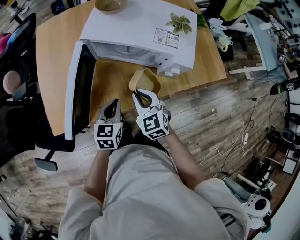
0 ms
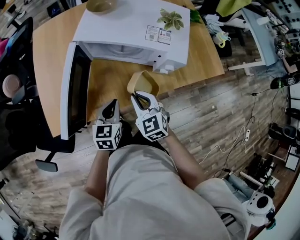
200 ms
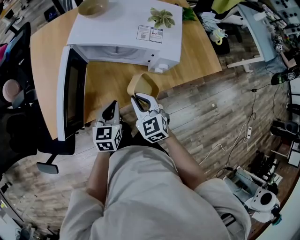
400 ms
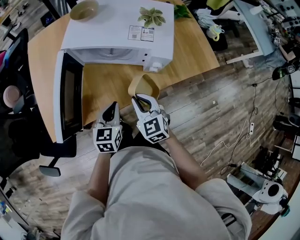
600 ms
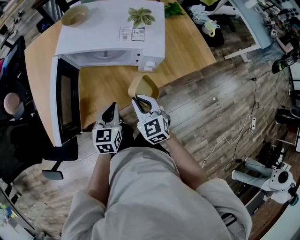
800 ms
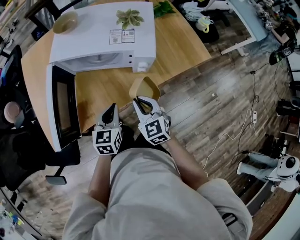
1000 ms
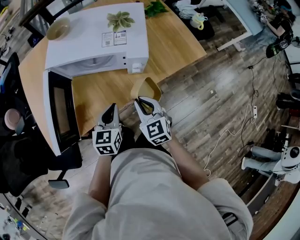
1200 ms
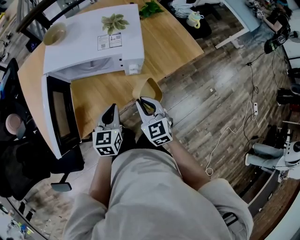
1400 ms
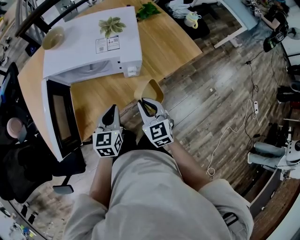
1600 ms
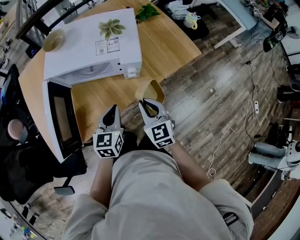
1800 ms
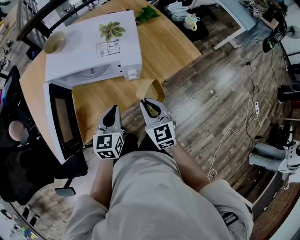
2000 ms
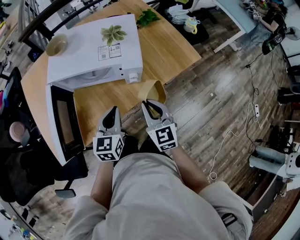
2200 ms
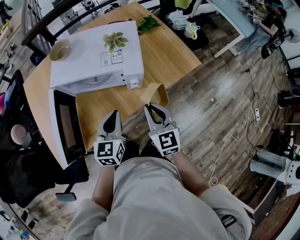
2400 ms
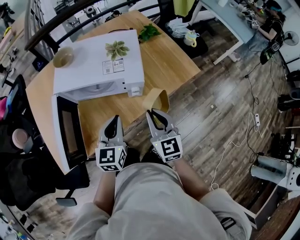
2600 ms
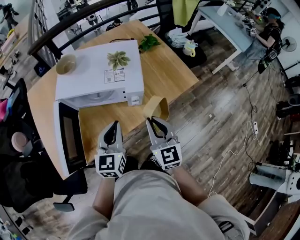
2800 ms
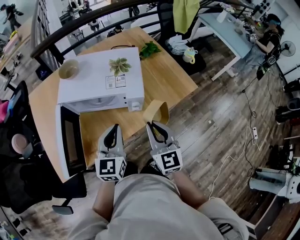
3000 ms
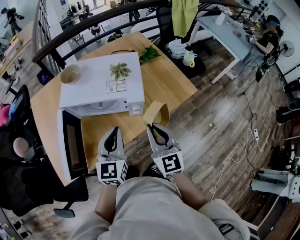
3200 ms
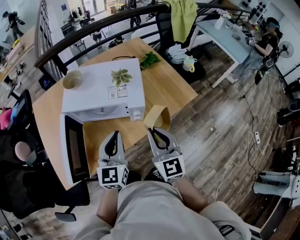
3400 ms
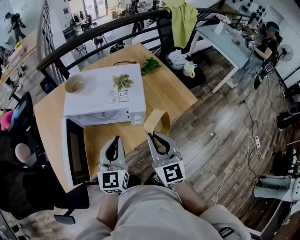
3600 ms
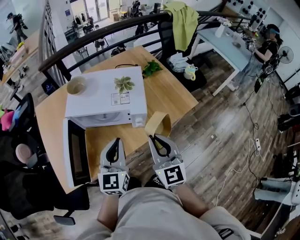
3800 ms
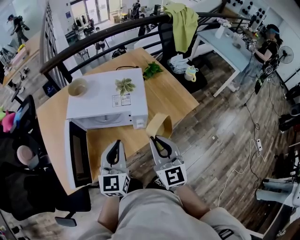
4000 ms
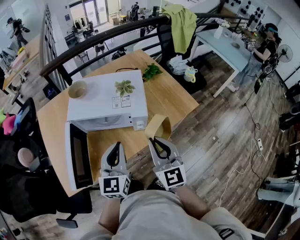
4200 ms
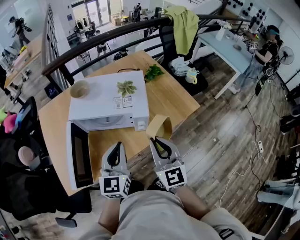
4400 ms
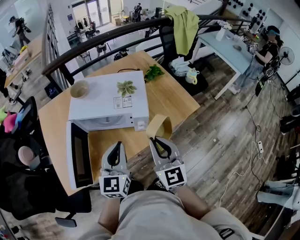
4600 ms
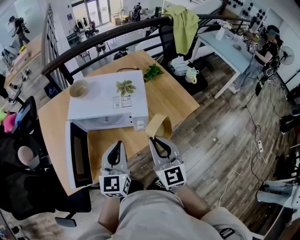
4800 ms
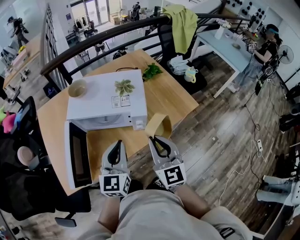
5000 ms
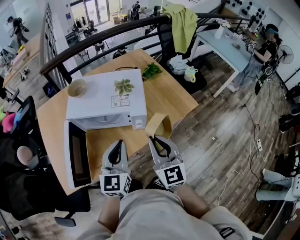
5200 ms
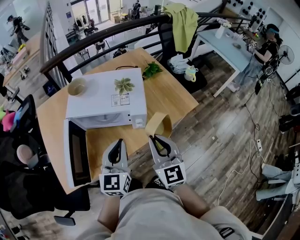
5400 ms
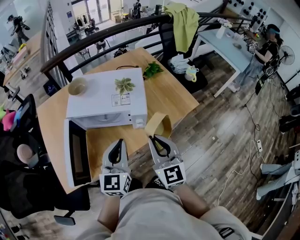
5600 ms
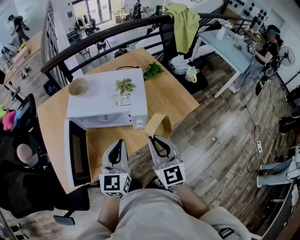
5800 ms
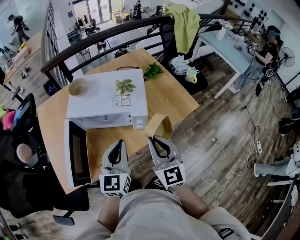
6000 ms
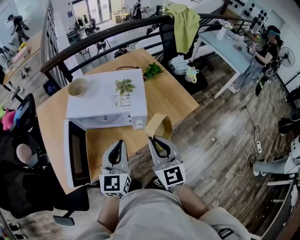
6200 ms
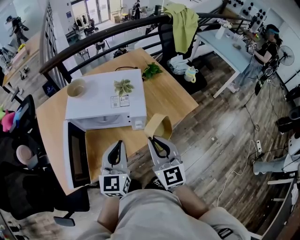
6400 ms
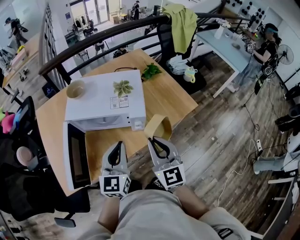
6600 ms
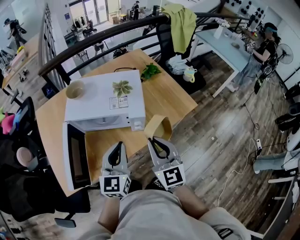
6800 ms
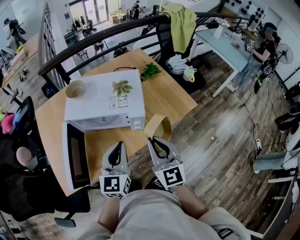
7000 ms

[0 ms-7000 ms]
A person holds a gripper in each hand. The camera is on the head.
0 ms to 1400 ms: Both grippers travel together to the right, approximately 15 cm.
1400 ms to 2800 ms: Both grippers travel together upward, roughly 10 cm.
2800 ms to 4200 ms: The grippers both shift upward by approximately 5 cm.
4200 ms to 5600 ms: The grippers make only small movements.
5600 ms to 7000 ms: Neither gripper changes place.

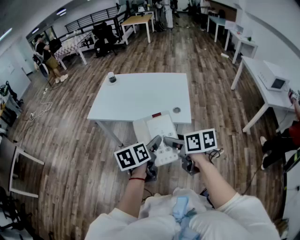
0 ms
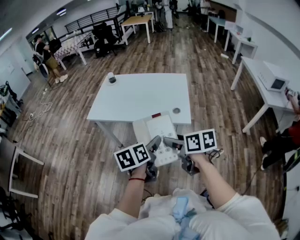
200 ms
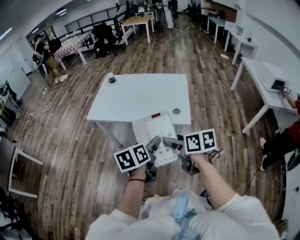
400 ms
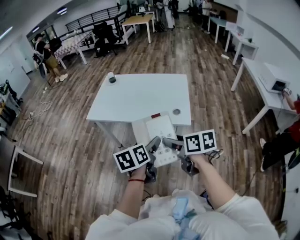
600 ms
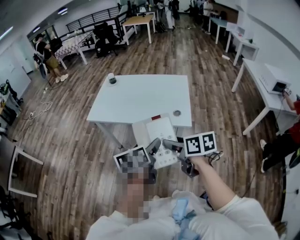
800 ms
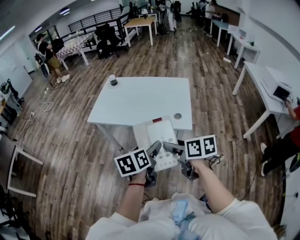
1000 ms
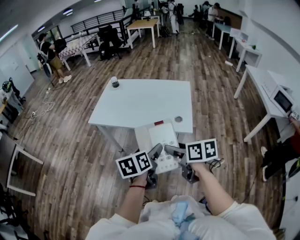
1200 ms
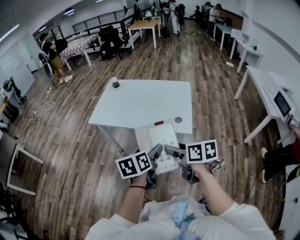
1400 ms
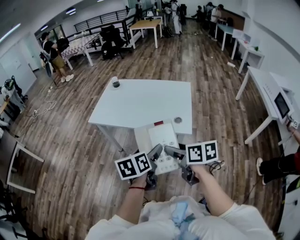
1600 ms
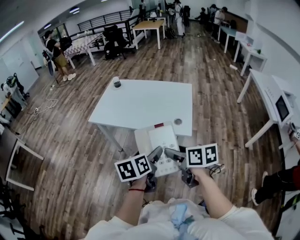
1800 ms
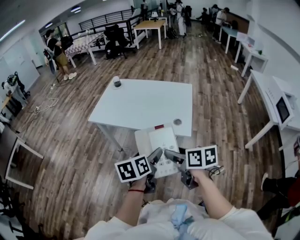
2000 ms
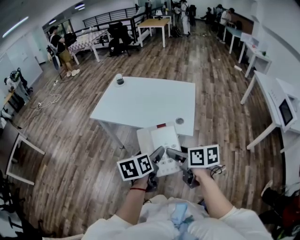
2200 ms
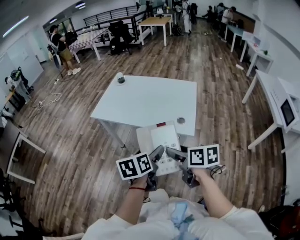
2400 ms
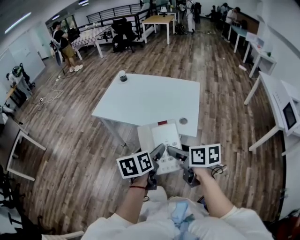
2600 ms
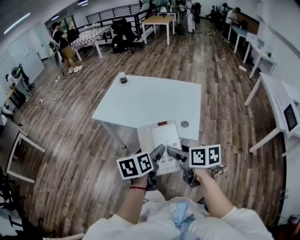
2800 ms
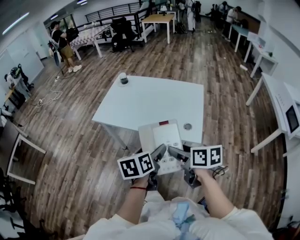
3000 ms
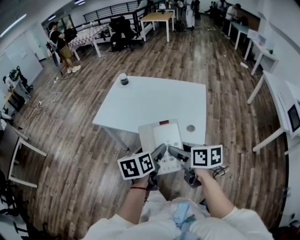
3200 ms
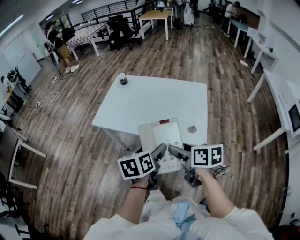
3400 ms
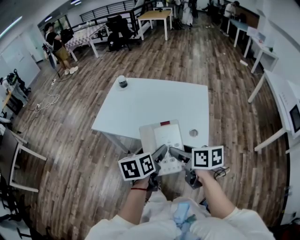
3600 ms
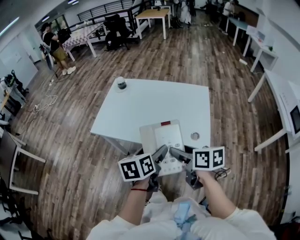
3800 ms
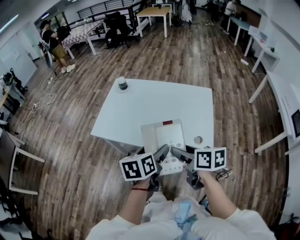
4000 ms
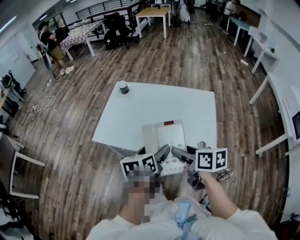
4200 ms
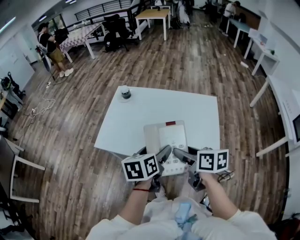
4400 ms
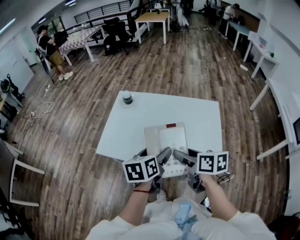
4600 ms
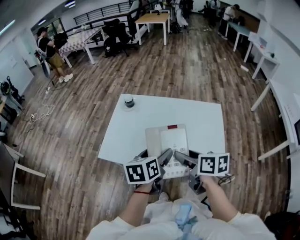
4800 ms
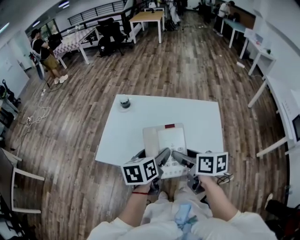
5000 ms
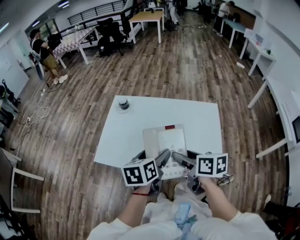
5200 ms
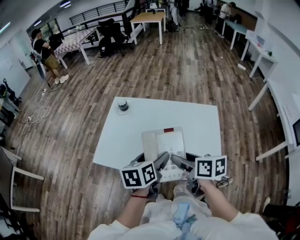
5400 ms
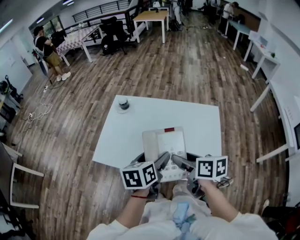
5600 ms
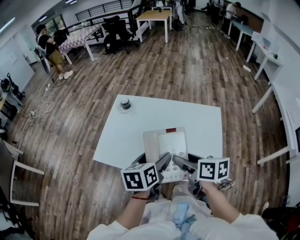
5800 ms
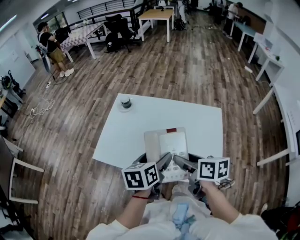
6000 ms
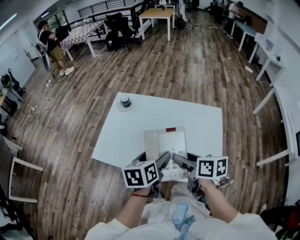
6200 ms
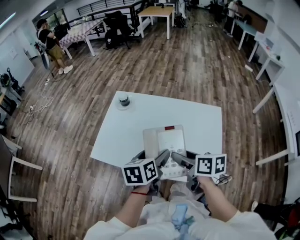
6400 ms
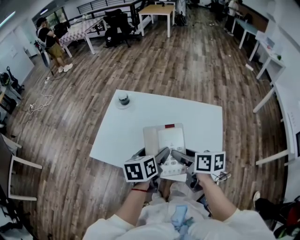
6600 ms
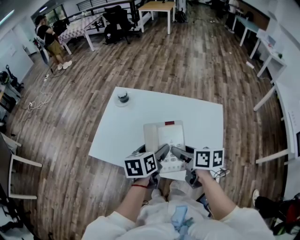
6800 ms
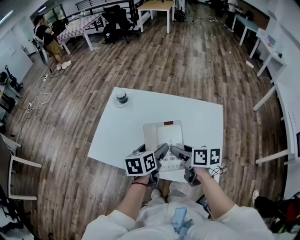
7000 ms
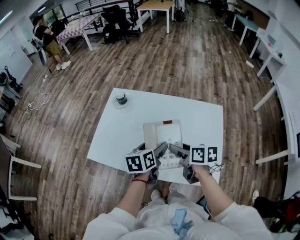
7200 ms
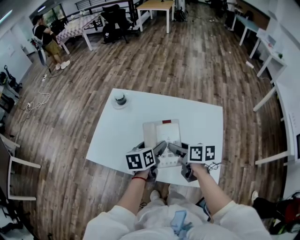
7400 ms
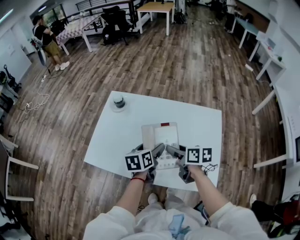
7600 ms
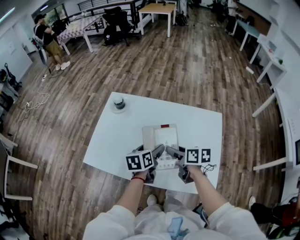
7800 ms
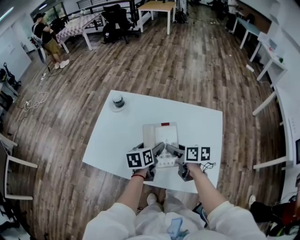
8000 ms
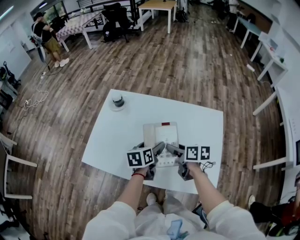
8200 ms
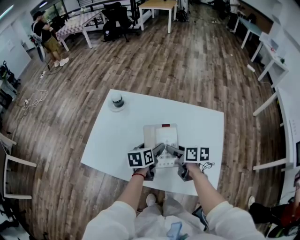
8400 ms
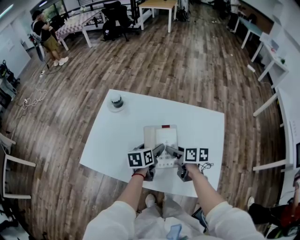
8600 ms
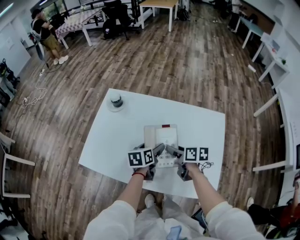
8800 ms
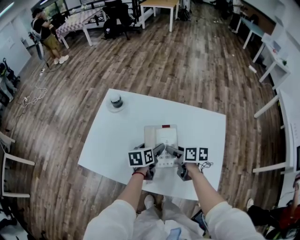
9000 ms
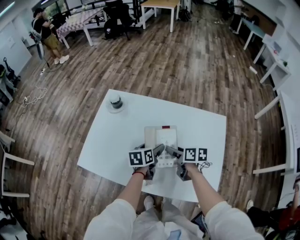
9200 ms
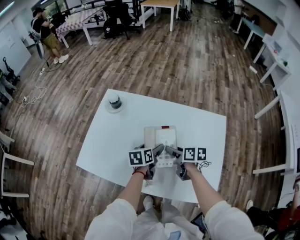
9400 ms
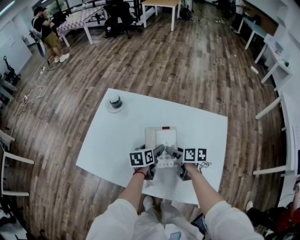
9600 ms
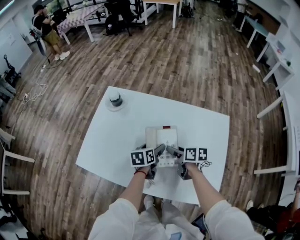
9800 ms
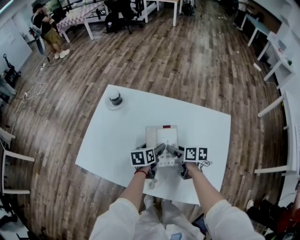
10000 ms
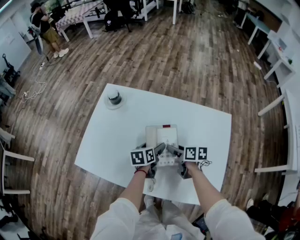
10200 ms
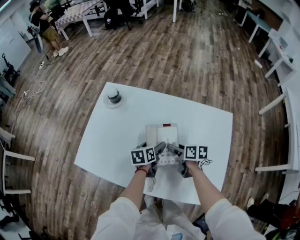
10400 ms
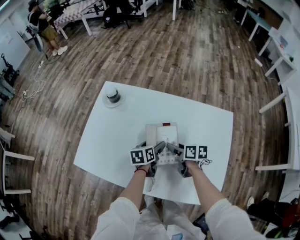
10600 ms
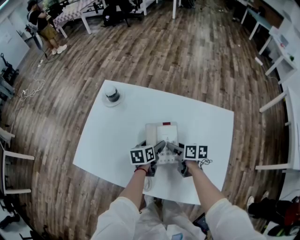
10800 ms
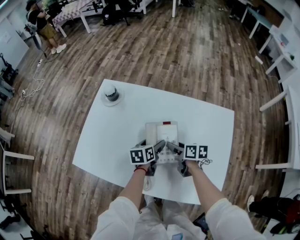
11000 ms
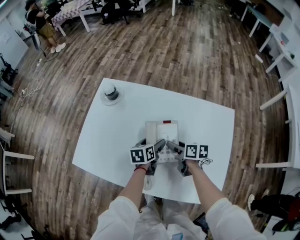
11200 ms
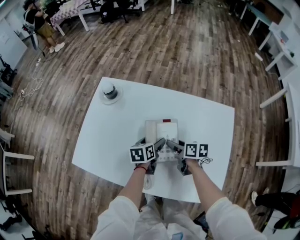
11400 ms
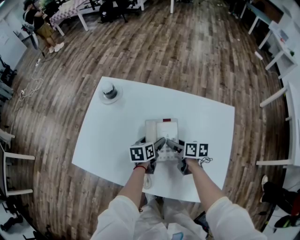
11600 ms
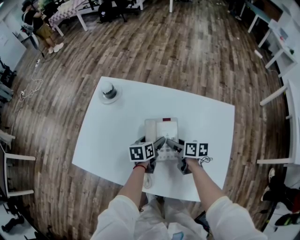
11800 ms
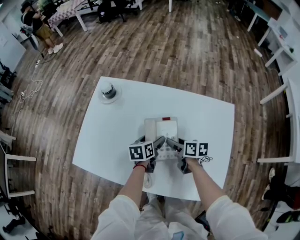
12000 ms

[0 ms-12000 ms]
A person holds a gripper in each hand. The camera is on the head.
0 ms to 1600 ms: The grippers make only small movements.
1600 ms to 3000 ms: The two grippers go about 5 cm forward.
3000 ms to 4400 ms: The two grippers go roughly 20 cm forward.
4400 ms to 6000 ms: Both grippers move forward, some 5 cm.
6000 ms to 7600 ms: Both grippers move forward and downward, approximately 15 cm.
7600 ms to 9000 ms: The left gripper goes approximately 10 cm downward and forward, while the right gripper shifts roughly 10 cm downward.
9000 ms to 10400 ms: The two grippers go roughly 5 cm downward.
10400 ms to 12000 ms: The grippers stay close to where they were, moving slightly.

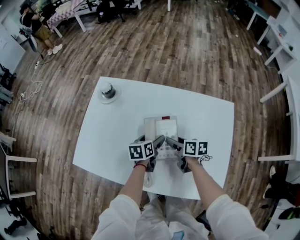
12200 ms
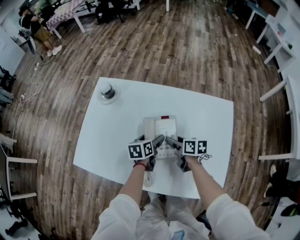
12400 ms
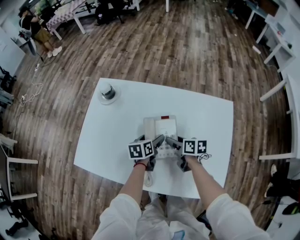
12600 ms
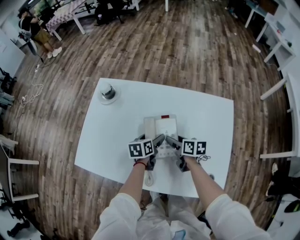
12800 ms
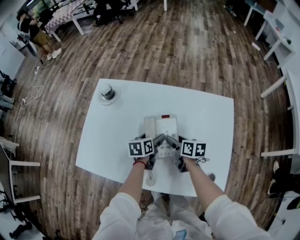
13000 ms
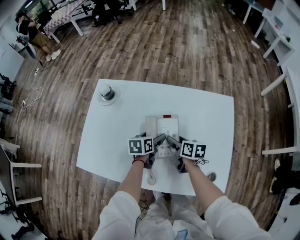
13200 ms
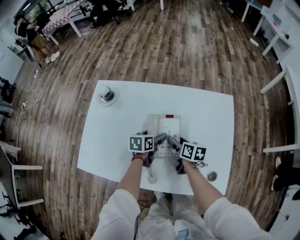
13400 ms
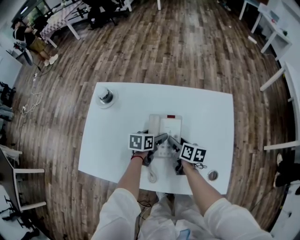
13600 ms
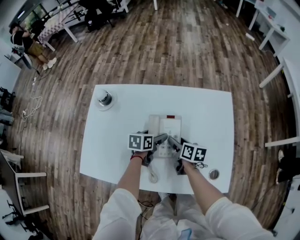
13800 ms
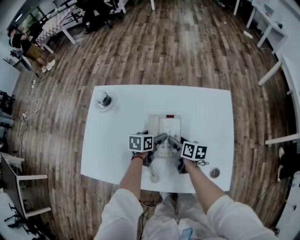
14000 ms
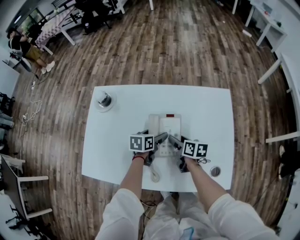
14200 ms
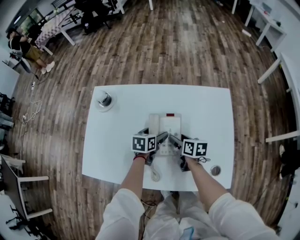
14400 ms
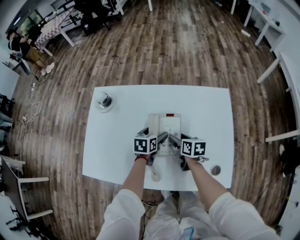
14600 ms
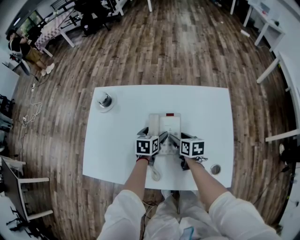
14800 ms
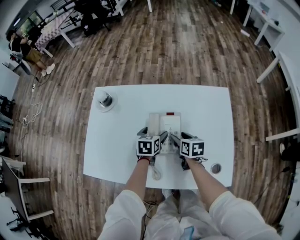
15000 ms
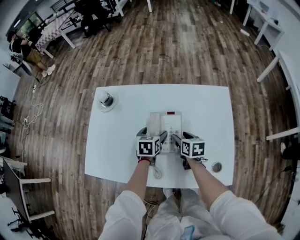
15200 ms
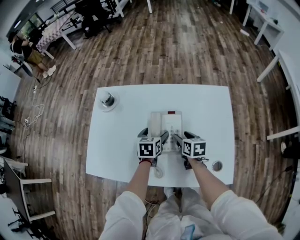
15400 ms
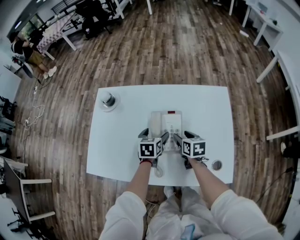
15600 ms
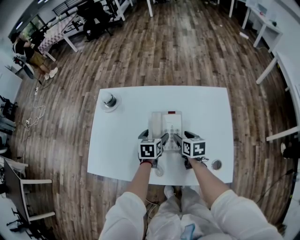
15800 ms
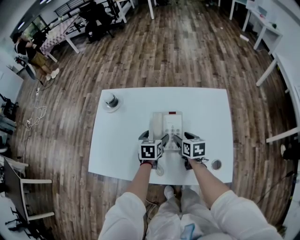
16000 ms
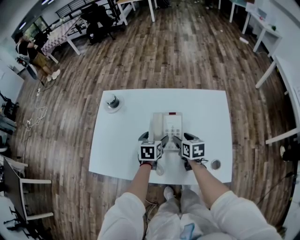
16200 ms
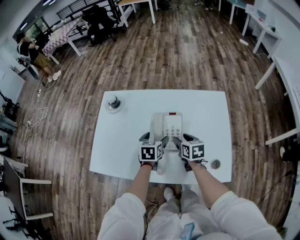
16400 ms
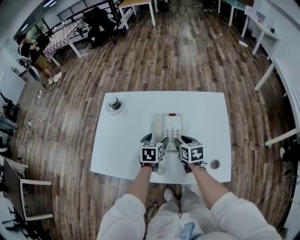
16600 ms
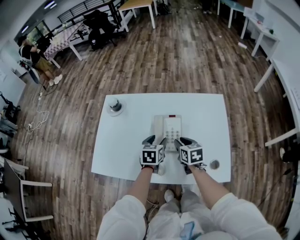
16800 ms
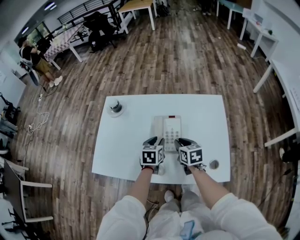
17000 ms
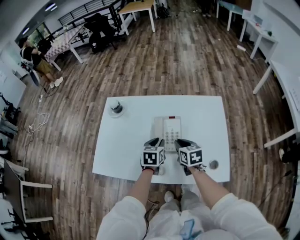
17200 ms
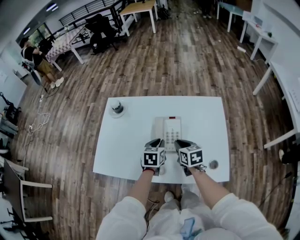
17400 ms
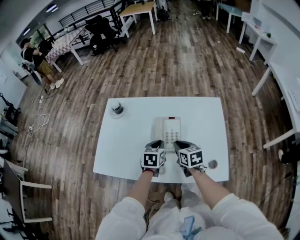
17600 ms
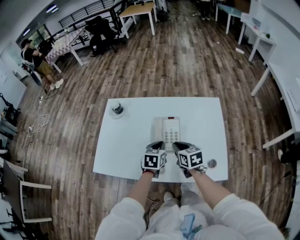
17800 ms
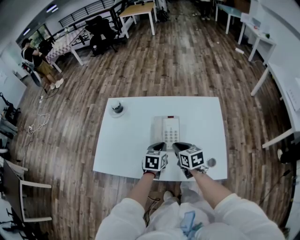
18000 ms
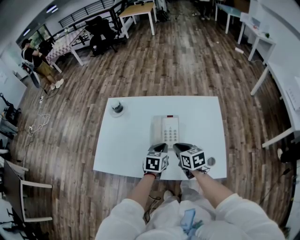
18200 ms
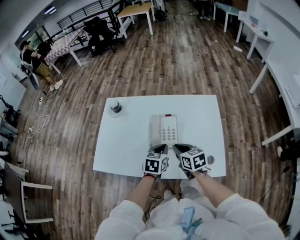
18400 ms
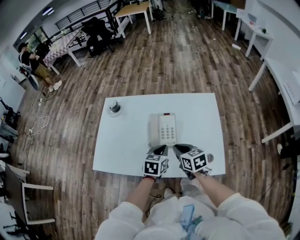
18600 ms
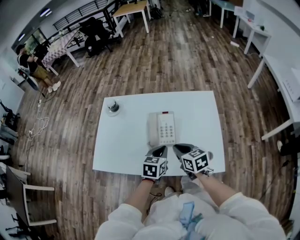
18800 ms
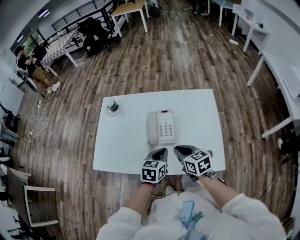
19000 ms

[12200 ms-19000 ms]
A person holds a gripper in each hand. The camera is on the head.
12200 ms to 13600 ms: The grippers make only small movements.
13600 ms to 15000 ms: The grippers move only a little.
15000 ms to 16200 ms: The left gripper changes place by approximately 5 cm.
16200 ms to 17600 ms: The two grippers go some 5 cm upward. The left gripper closes its fingers. Meanwhile the right gripper closes up.
17600 ms to 19000 ms: The two grippers go some 10 cm backward.
